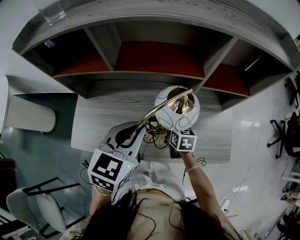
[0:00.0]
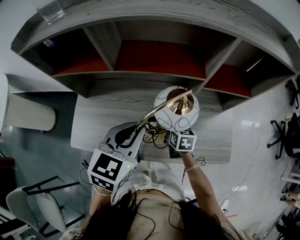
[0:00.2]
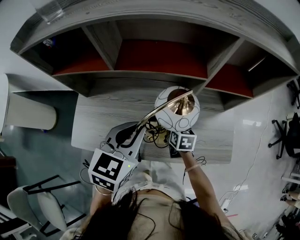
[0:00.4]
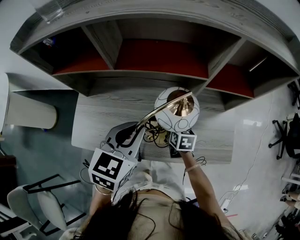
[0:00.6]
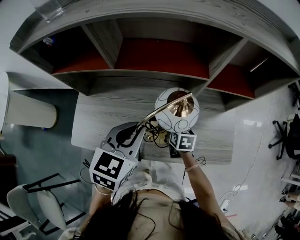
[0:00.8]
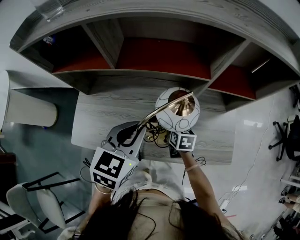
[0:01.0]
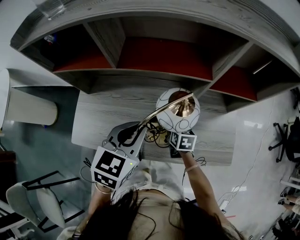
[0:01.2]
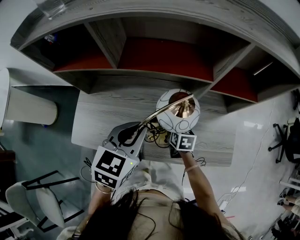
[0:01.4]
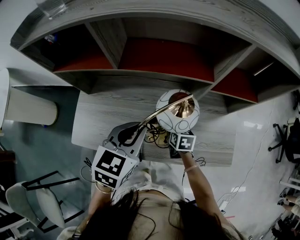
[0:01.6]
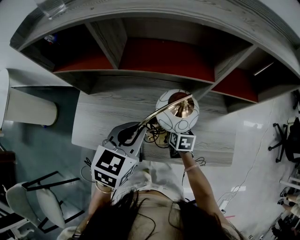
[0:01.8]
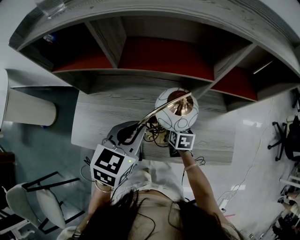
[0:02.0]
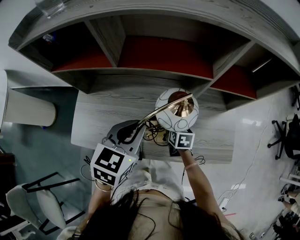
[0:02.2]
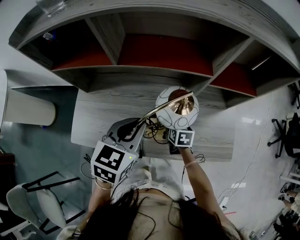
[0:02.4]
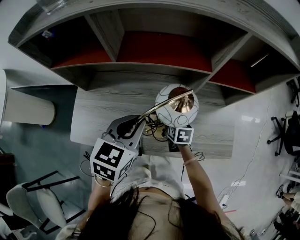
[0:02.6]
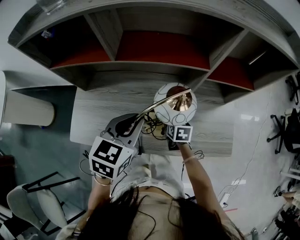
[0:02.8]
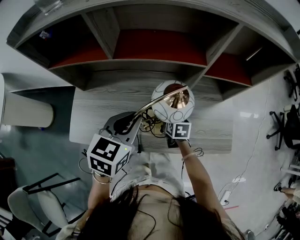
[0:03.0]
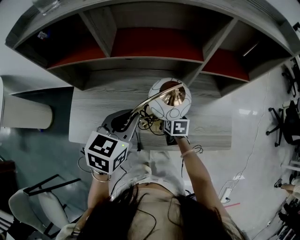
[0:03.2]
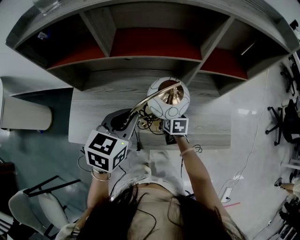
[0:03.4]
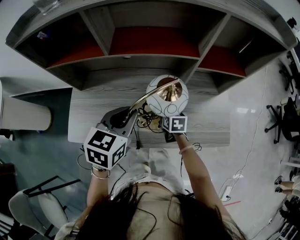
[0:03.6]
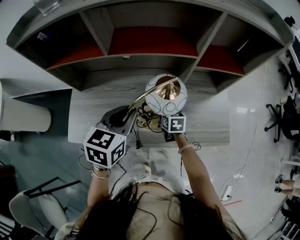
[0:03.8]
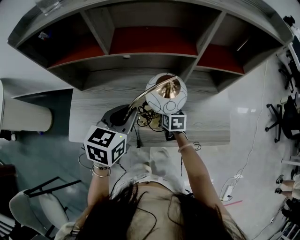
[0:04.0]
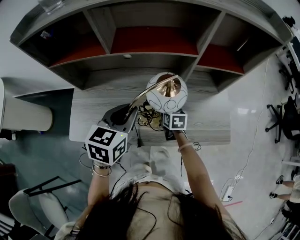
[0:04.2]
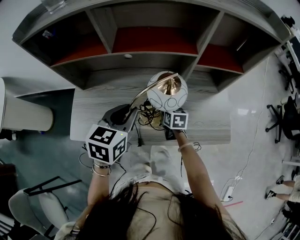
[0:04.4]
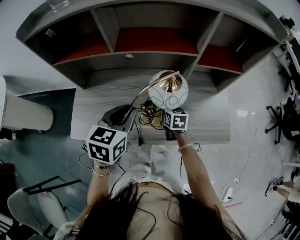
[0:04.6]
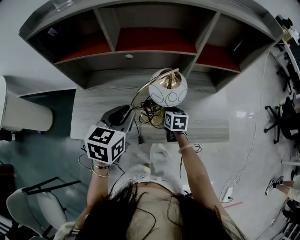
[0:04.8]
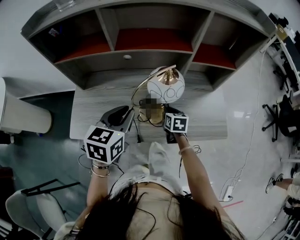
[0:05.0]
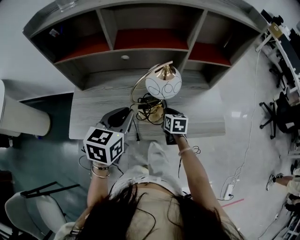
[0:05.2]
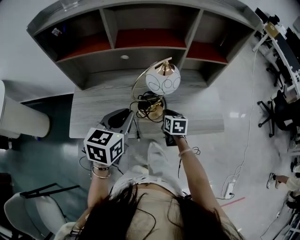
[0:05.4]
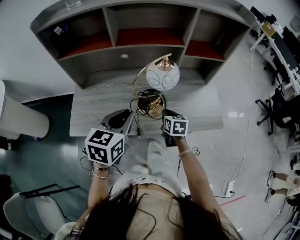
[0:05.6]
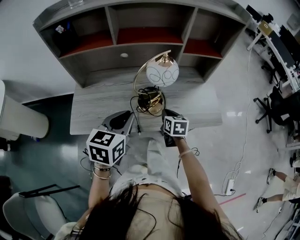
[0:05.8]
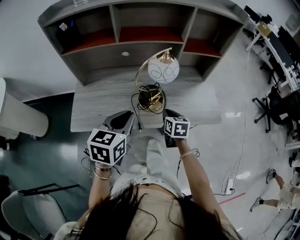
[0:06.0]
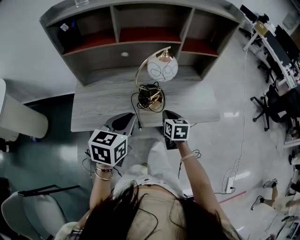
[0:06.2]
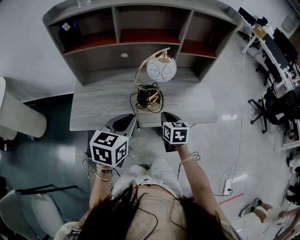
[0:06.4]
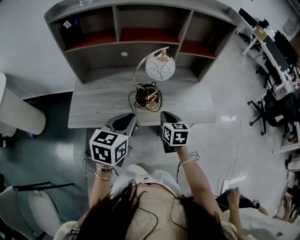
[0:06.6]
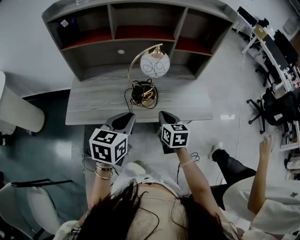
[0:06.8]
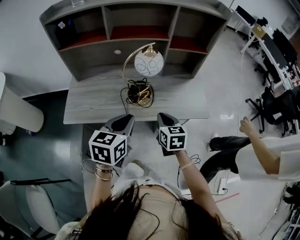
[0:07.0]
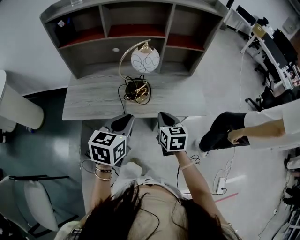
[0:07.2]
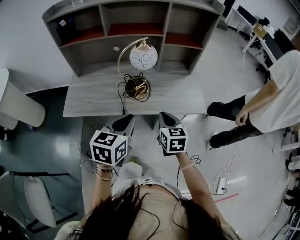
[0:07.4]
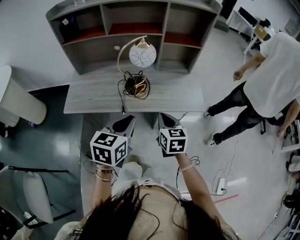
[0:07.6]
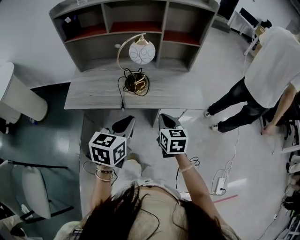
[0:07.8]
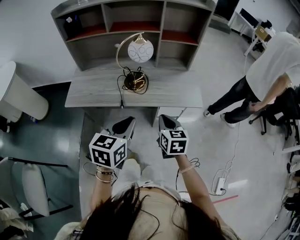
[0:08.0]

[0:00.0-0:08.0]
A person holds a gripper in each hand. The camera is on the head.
0:00.0 to 0:03.2: The grippers move only a little.
0:03.2 to 0:04.8: The grippers stay close to where they were, moving slightly.
0:04.8 to 0:06.4: The right gripper heads backward and upward, covering some 20 cm. Meanwhile the left gripper goes some 15 cm backward.
0:06.4 to 0:08.0: Both grippers move backward and to the right, approximately 20 cm.

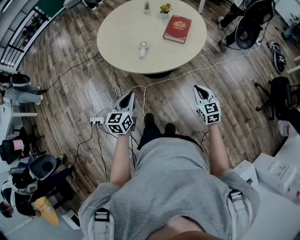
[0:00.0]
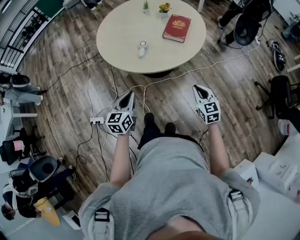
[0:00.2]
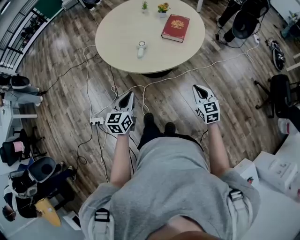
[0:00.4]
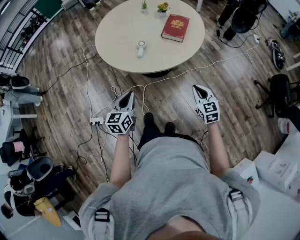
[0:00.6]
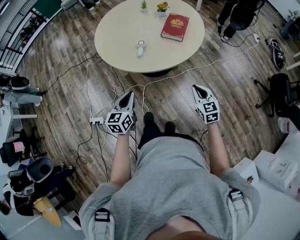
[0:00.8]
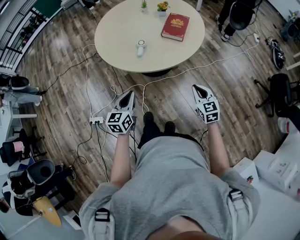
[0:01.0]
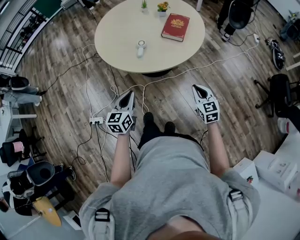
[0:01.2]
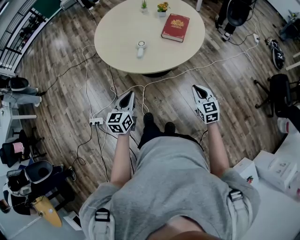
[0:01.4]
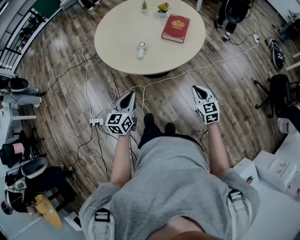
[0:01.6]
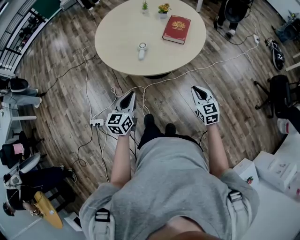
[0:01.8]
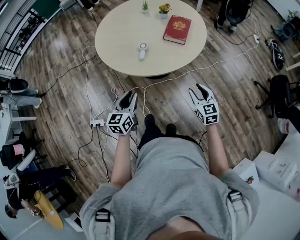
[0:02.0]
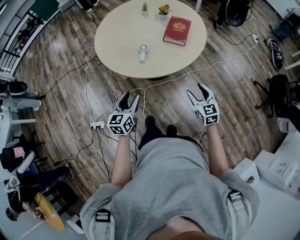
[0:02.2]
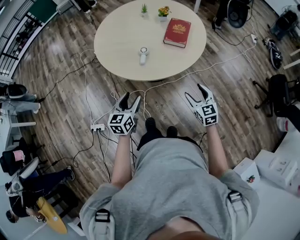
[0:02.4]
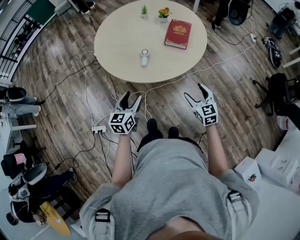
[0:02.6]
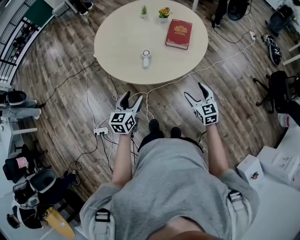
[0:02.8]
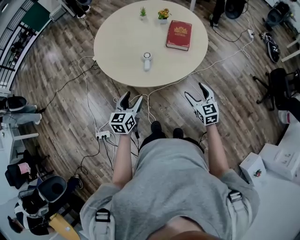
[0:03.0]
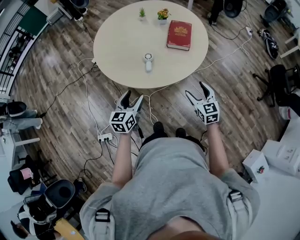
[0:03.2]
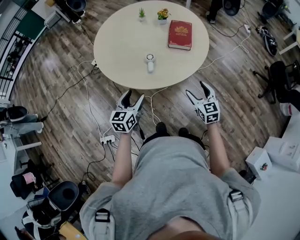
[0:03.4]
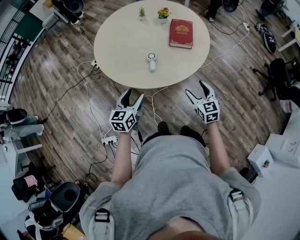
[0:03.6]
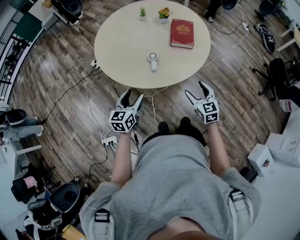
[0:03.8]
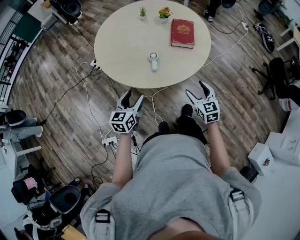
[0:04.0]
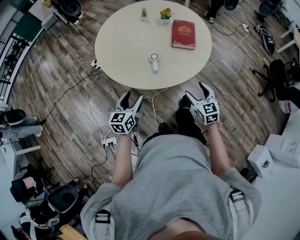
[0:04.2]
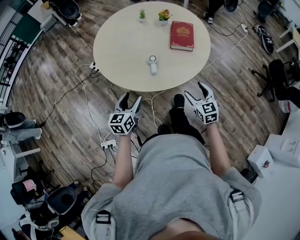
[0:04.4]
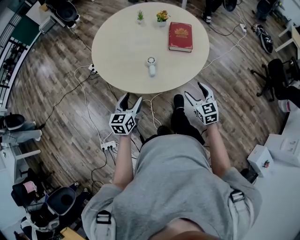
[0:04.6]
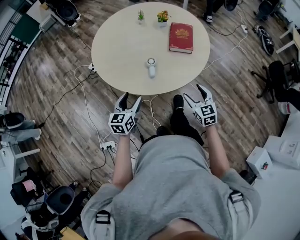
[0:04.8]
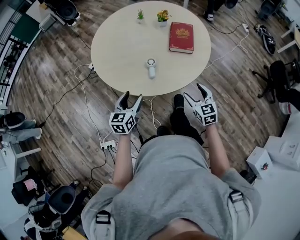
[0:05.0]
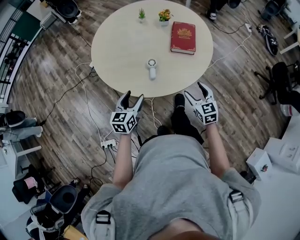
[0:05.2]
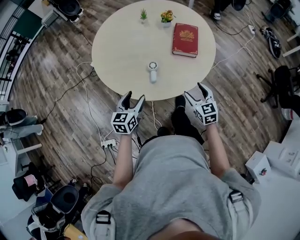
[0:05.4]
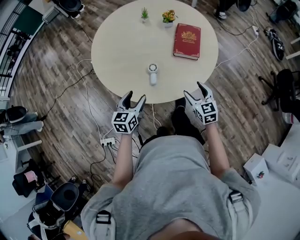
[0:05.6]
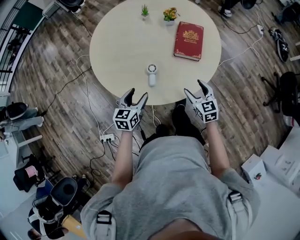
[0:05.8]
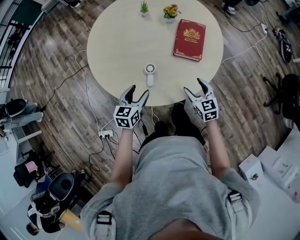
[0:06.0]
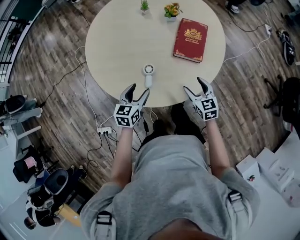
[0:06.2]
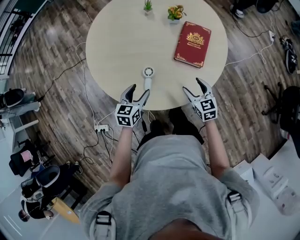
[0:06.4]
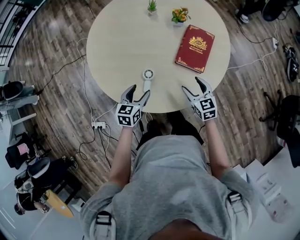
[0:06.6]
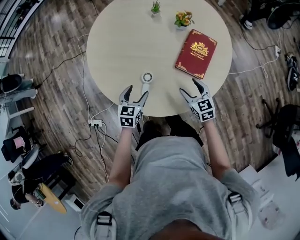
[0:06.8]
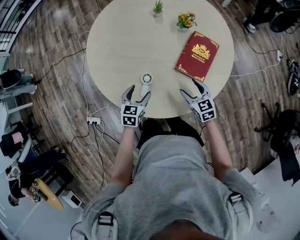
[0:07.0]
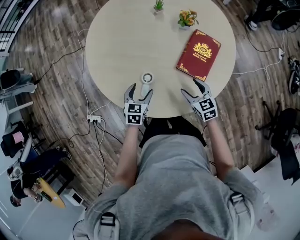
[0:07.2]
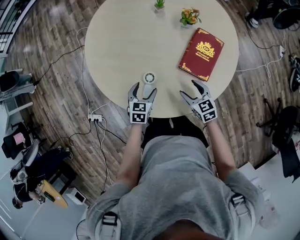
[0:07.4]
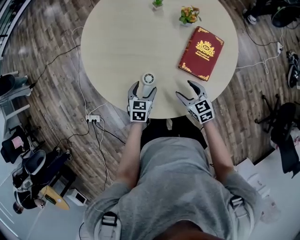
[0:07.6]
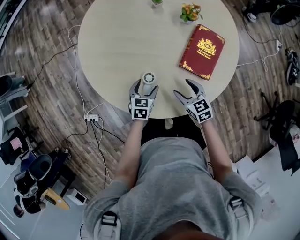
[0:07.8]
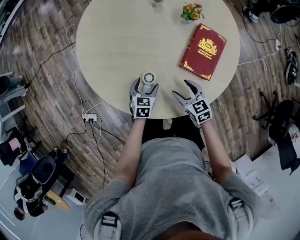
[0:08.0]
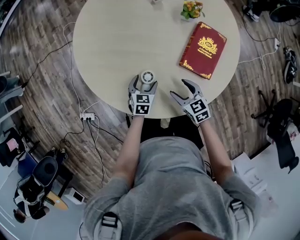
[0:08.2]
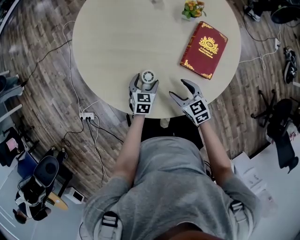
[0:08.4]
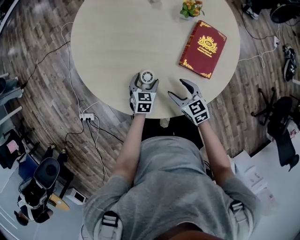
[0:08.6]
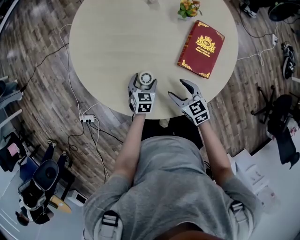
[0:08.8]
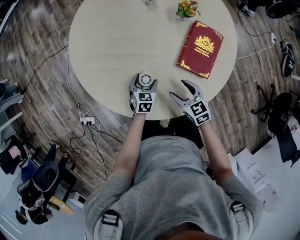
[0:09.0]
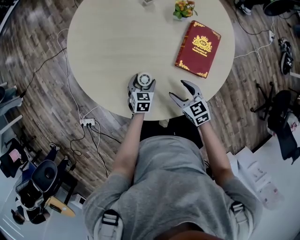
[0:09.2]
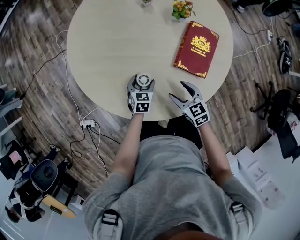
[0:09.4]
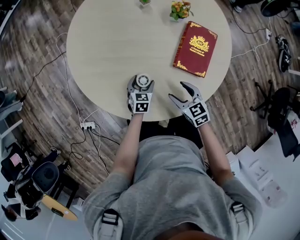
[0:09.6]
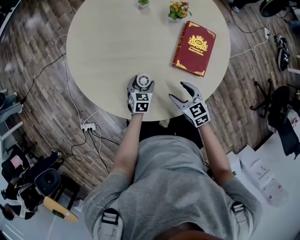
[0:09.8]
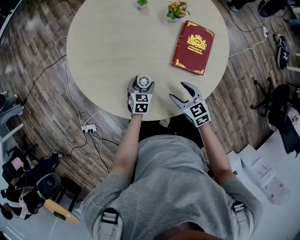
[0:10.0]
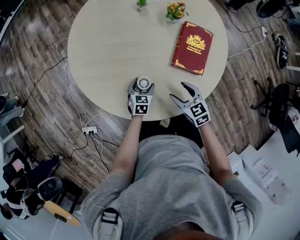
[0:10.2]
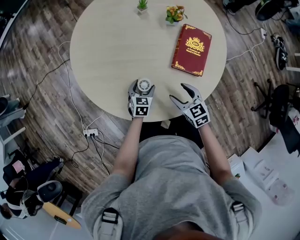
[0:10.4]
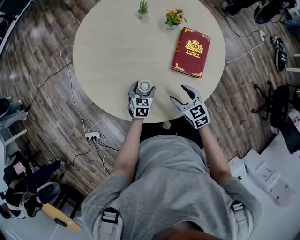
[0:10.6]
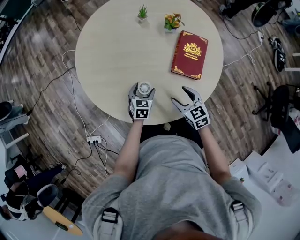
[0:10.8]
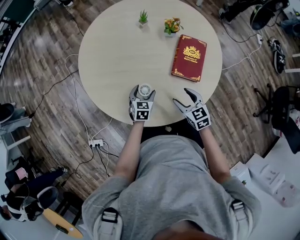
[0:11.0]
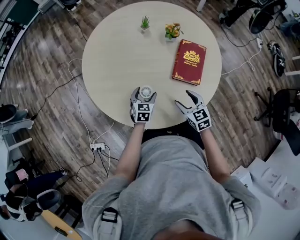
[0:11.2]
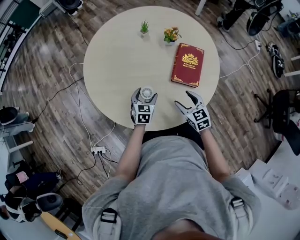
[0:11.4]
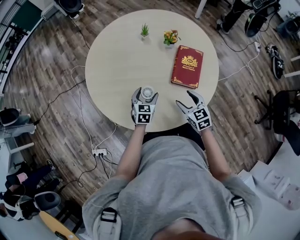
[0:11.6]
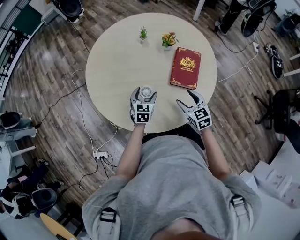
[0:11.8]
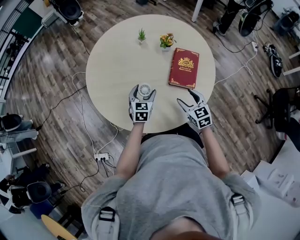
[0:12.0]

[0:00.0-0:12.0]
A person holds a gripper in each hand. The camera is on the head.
0:00.0 to 0:01.6: There are only small adjustments of the grippers.
0:01.6 to 0:03.0: The left gripper moves forward and to the left, about 10 cm, and opens up, while the right gripper heads to the left and forward, covering some 10 cm, and opens.
0:03.0 to 0:04.4: The two grippers go about 10 cm to the left.
0:04.4 to 0:06.0: The left gripper moves forward and to the right, roughly 20 cm; the right gripper heads forward, covering roughly 20 cm.
0:06.0 to 0:07.6: The left gripper shifts some 15 cm downward and forward. The right gripper moves forward and downward, roughly 15 cm, and rotates some 20 degrees.
0:07.6 to 0:09.0: The left gripper is displaced downward by roughly 5 cm.
0:09.0 to 0:10.4: There are only small adjustments of the grippers.
0:10.4 to 0:12.0: The left gripper is displaced upward by roughly 15 cm. The right gripper heads upward and to the right, covering about 10 cm.

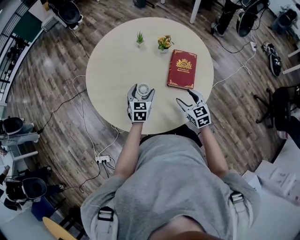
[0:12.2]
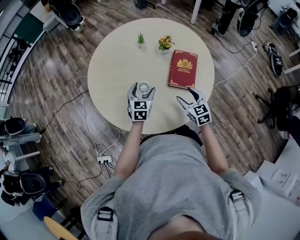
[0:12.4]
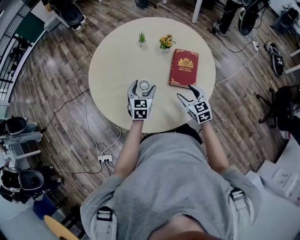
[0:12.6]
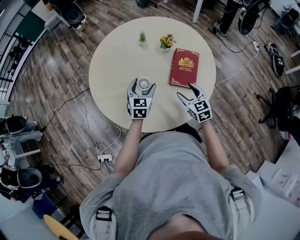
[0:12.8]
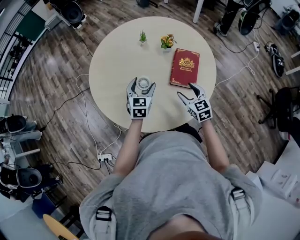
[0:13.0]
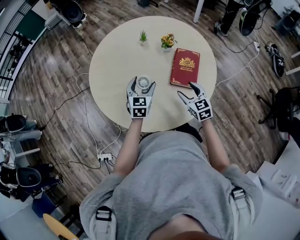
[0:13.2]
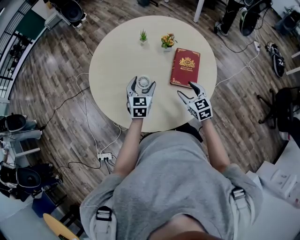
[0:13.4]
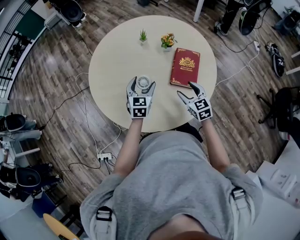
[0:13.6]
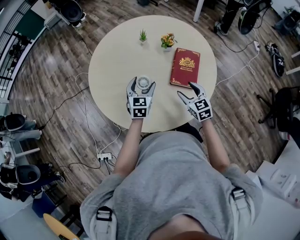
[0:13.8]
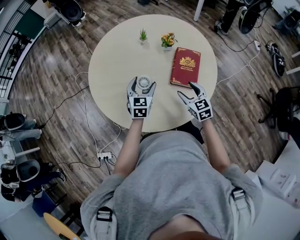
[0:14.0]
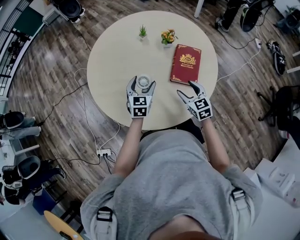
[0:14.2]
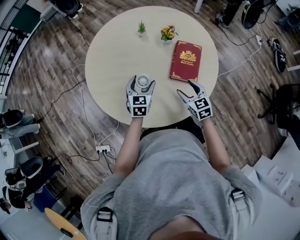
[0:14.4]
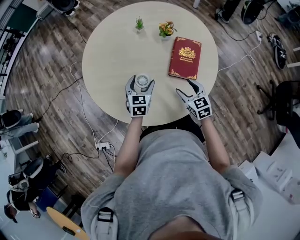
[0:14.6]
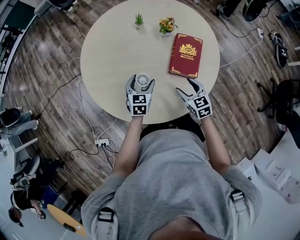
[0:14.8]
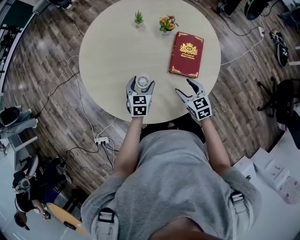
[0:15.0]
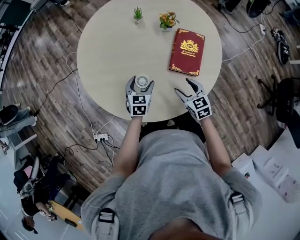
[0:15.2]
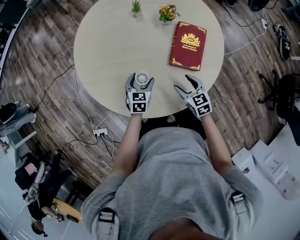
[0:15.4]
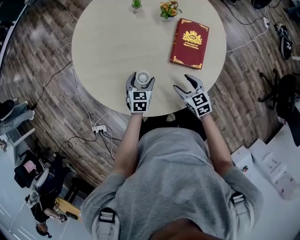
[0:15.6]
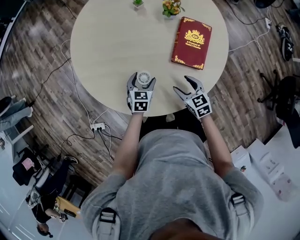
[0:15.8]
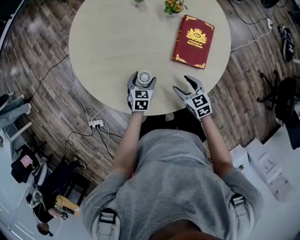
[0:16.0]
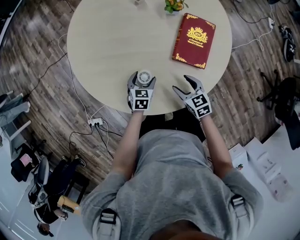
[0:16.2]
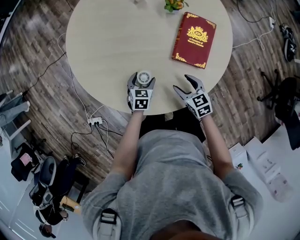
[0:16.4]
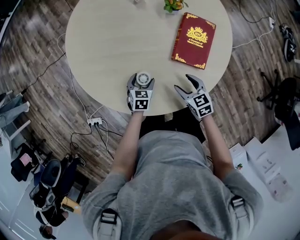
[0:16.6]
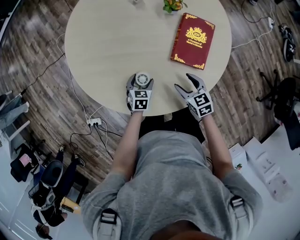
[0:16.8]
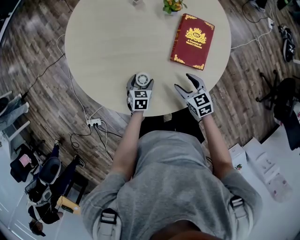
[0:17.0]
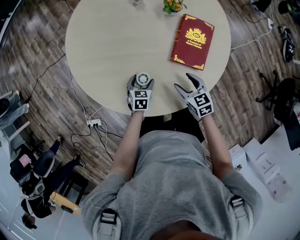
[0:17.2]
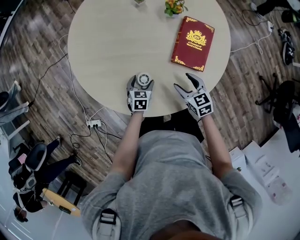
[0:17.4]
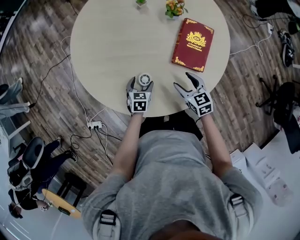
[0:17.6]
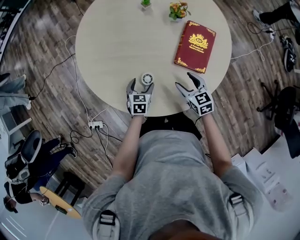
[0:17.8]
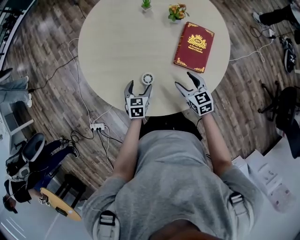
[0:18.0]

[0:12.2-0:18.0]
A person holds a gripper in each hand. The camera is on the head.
0:12.2 to 0:13.6: The grippers move only a little.
0:13.6 to 0:15.0: The right gripper shifts approximately 5 cm downward. The left gripper is displaced downward by roughly 10 cm.
0:15.0 to 0:16.6: The left gripper moves downward, some 15 cm, while the right gripper travels downward by about 10 cm.
0:16.6 to 0:18.0: The two grippers go some 5 cm upward.
